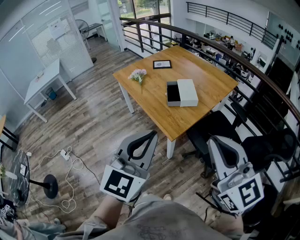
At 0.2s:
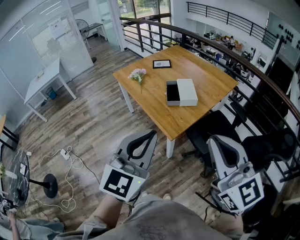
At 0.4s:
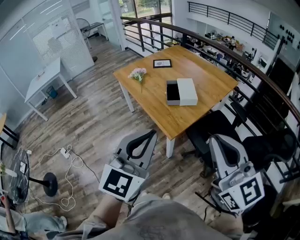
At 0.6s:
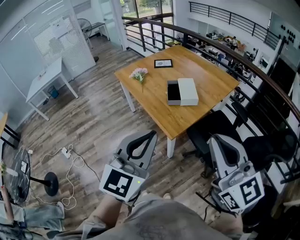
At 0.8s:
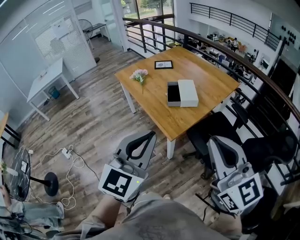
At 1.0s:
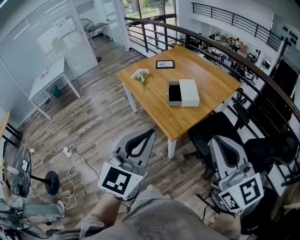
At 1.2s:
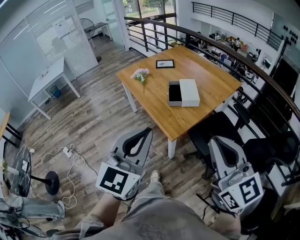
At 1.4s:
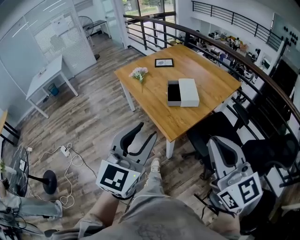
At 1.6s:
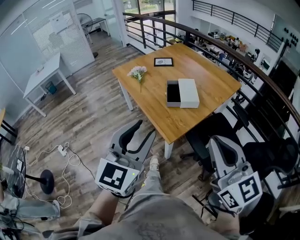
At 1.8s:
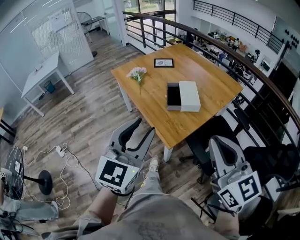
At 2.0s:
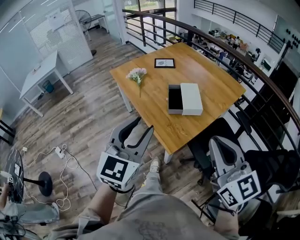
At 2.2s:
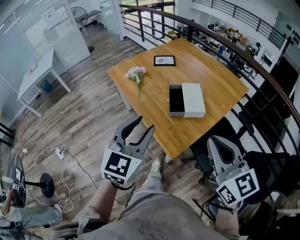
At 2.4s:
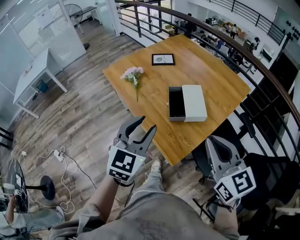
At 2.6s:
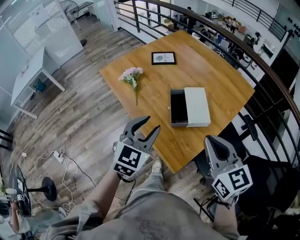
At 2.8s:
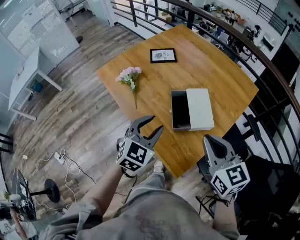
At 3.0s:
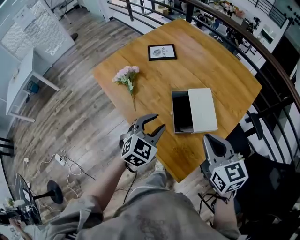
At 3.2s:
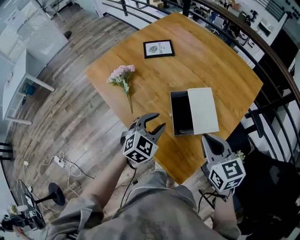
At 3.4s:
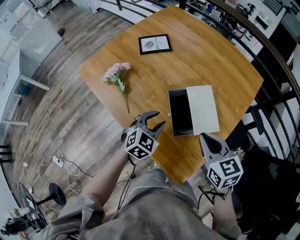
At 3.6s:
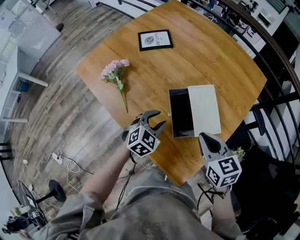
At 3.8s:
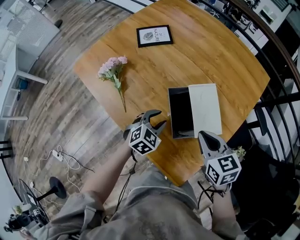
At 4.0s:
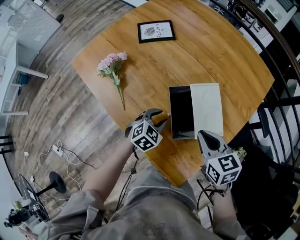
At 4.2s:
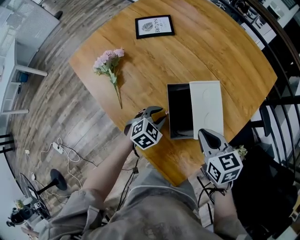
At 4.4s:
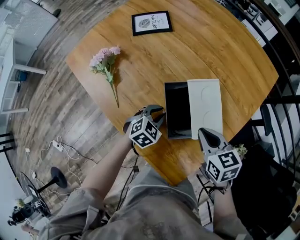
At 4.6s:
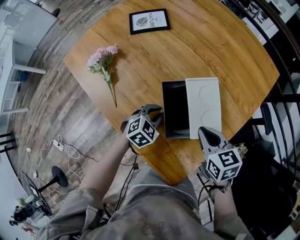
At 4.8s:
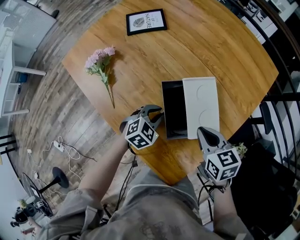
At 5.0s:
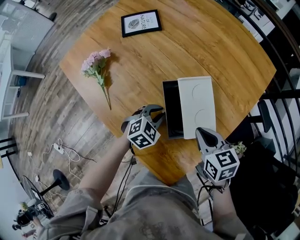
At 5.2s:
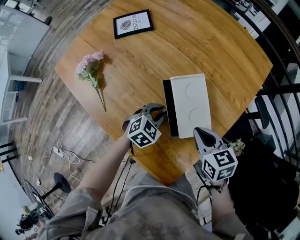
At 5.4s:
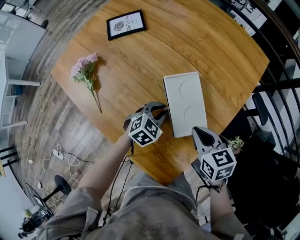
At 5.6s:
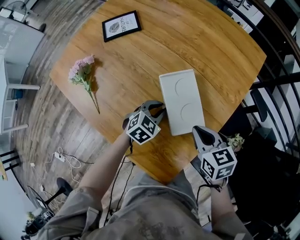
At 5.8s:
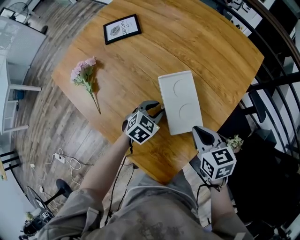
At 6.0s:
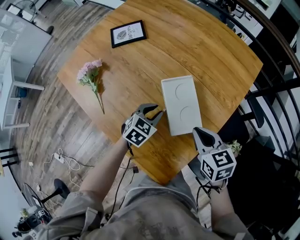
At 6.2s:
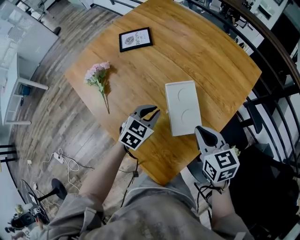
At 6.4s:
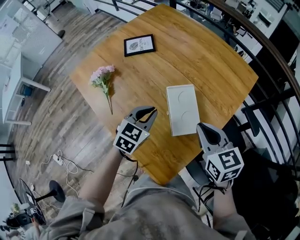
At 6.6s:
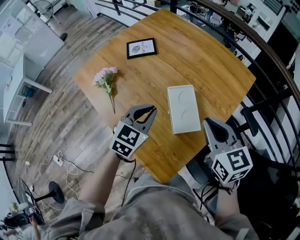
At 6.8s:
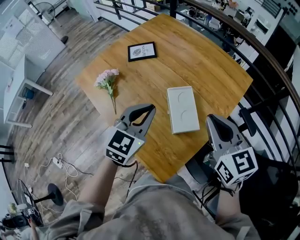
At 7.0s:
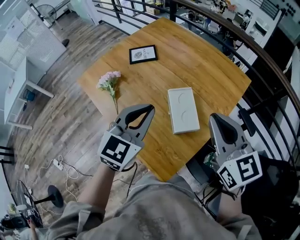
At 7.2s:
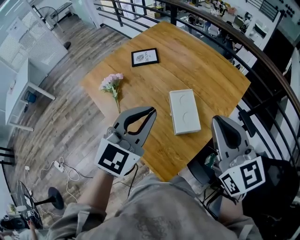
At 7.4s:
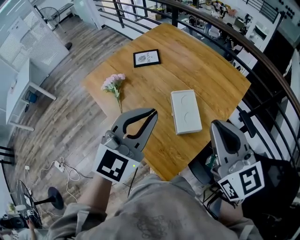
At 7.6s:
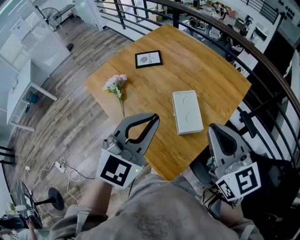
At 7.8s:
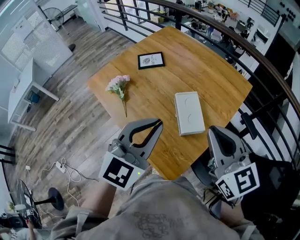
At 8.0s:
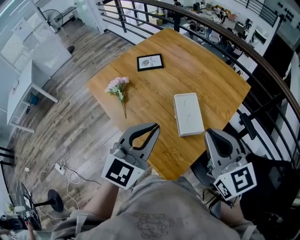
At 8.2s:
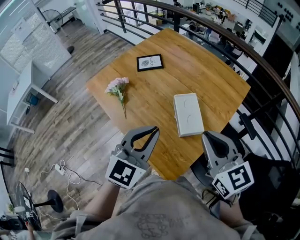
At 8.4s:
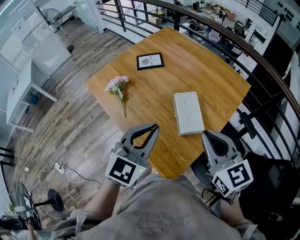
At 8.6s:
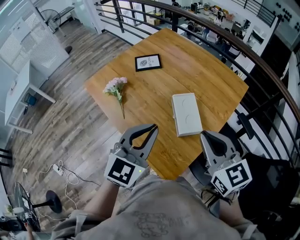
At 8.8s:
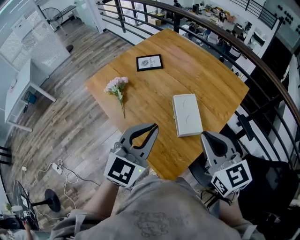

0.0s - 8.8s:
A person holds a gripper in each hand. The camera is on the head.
0.0s - 1.4s: The left gripper opens up.
1.4s - 3.0s: The two grippers go roughly 50 cm forward and downward. The right gripper changes its angle by approximately 30 degrees. The left gripper tips its fingers downward by roughly 30 degrees.
3.0s - 4.4s: The left gripper shifts roughly 20 cm downward, and swivels approximately 20 degrees, while the right gripper heads downward and forward, covering approximately 20 cm, and turns by some 20 degrees.
4.4s - 5.8s: The two grippers go roughly 10 cm to the right.
5.8s - 7.4s: Both grippers travel together upward, some 35 cm. The right gripper tips its fingers upward by approximately 40 degrees. Meanwhile the left gripper tips its fingers upward by approximately 40 degrees, and closes.
7.4s - 8.8s: The left gripper shifts by roughly 5 cm, while the right gripper travels downward by roughly 5 cm.

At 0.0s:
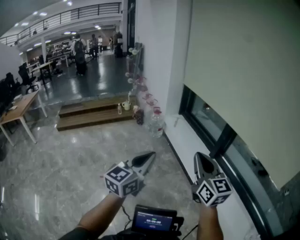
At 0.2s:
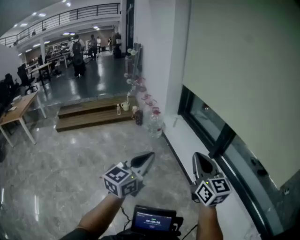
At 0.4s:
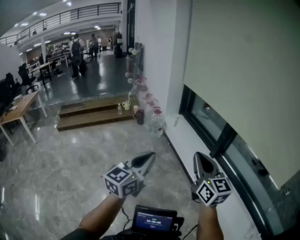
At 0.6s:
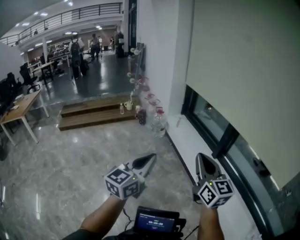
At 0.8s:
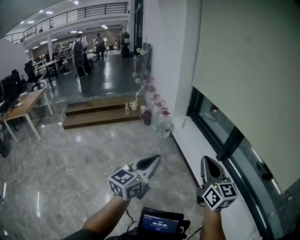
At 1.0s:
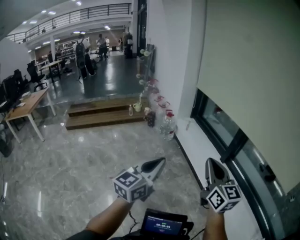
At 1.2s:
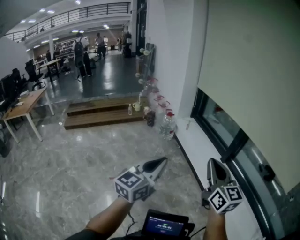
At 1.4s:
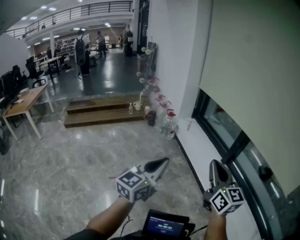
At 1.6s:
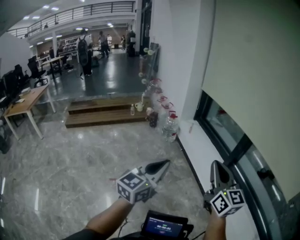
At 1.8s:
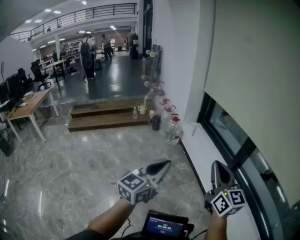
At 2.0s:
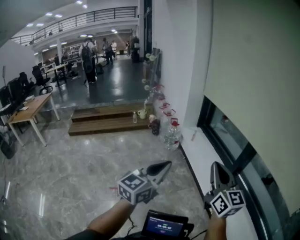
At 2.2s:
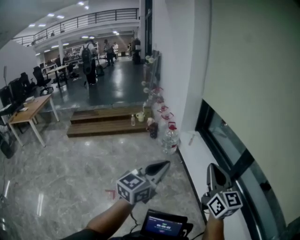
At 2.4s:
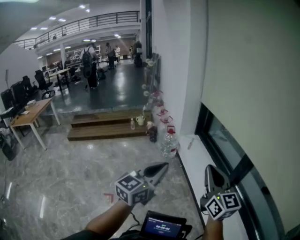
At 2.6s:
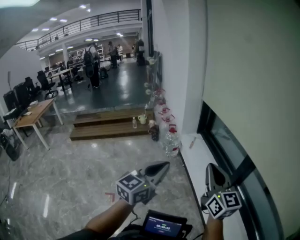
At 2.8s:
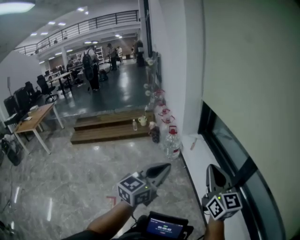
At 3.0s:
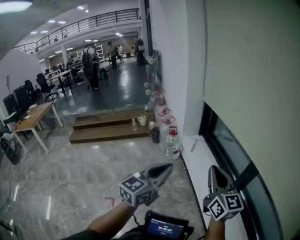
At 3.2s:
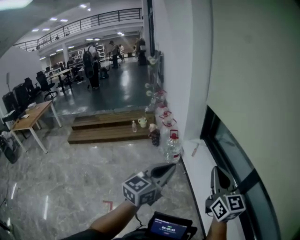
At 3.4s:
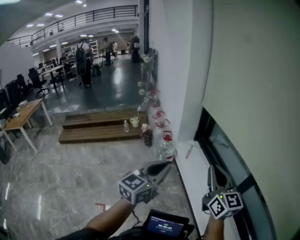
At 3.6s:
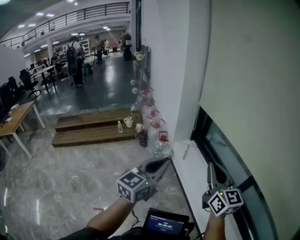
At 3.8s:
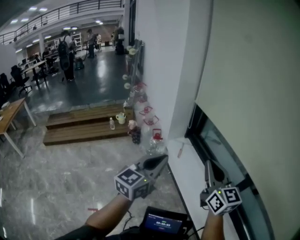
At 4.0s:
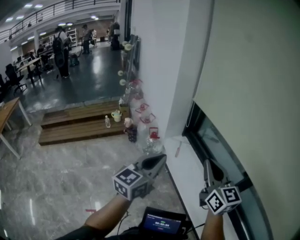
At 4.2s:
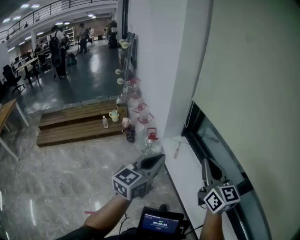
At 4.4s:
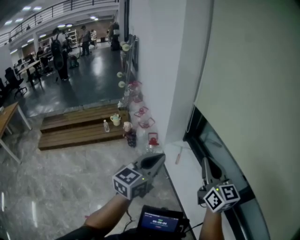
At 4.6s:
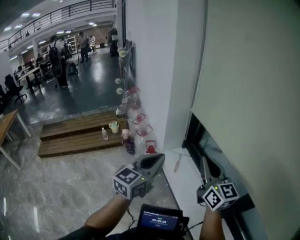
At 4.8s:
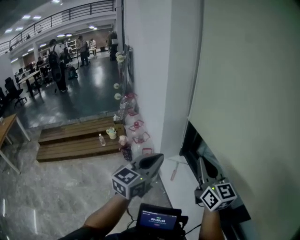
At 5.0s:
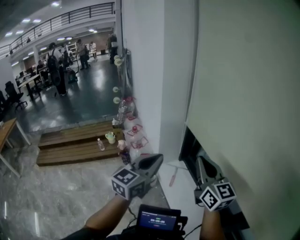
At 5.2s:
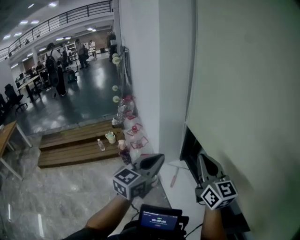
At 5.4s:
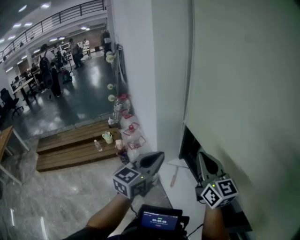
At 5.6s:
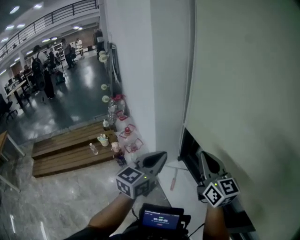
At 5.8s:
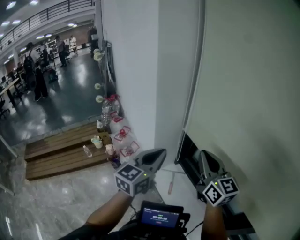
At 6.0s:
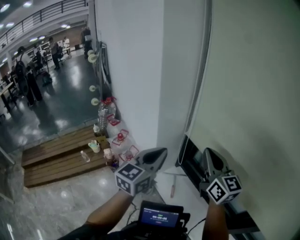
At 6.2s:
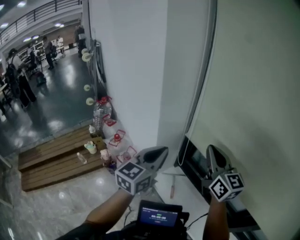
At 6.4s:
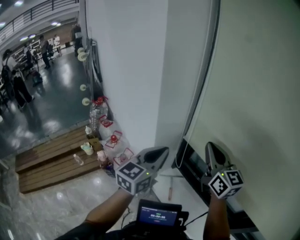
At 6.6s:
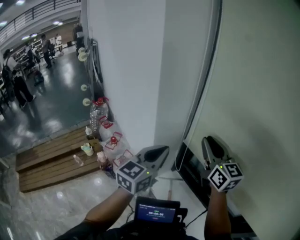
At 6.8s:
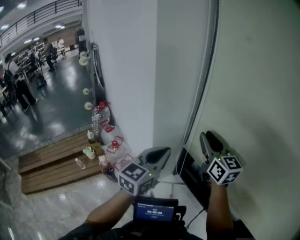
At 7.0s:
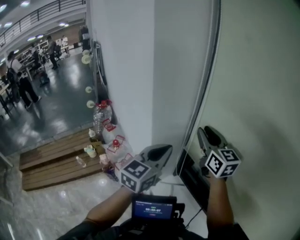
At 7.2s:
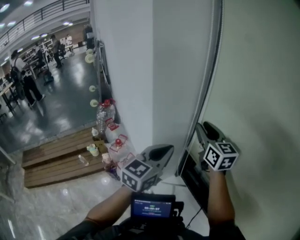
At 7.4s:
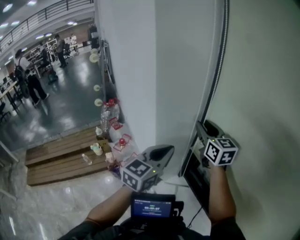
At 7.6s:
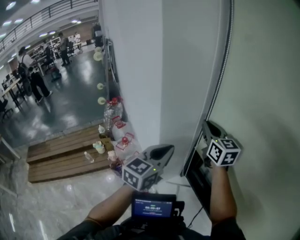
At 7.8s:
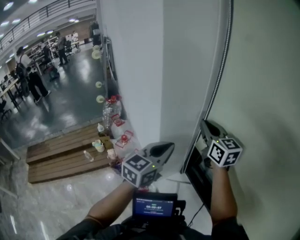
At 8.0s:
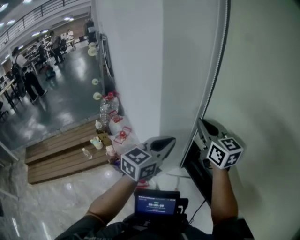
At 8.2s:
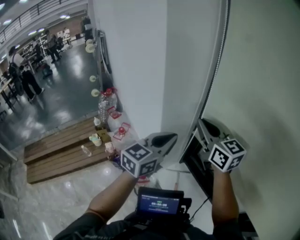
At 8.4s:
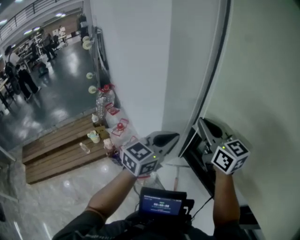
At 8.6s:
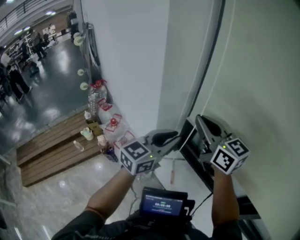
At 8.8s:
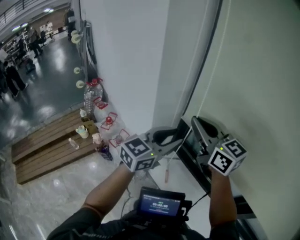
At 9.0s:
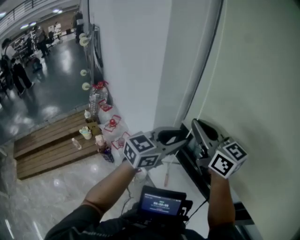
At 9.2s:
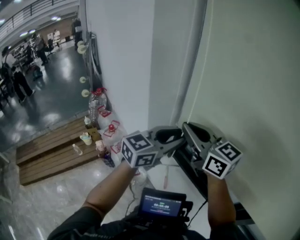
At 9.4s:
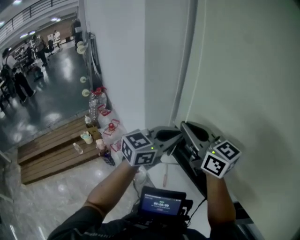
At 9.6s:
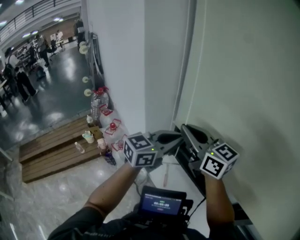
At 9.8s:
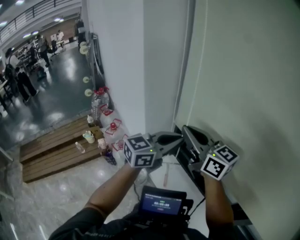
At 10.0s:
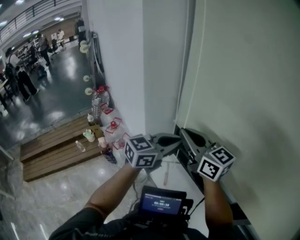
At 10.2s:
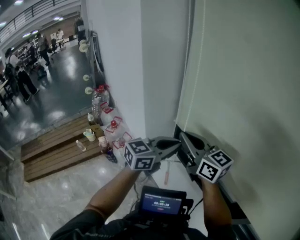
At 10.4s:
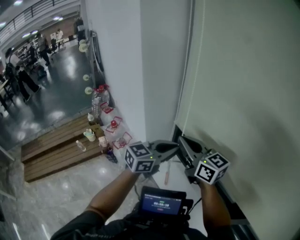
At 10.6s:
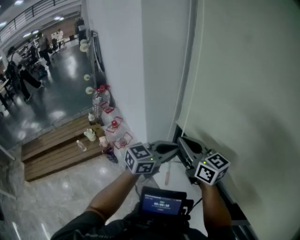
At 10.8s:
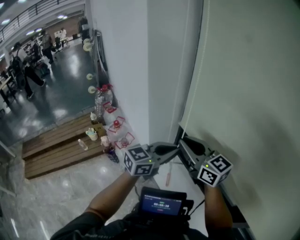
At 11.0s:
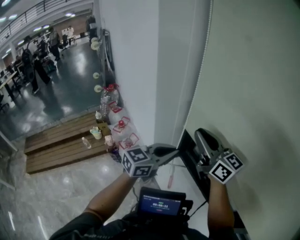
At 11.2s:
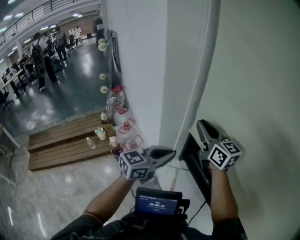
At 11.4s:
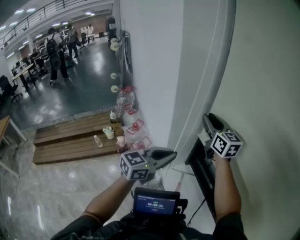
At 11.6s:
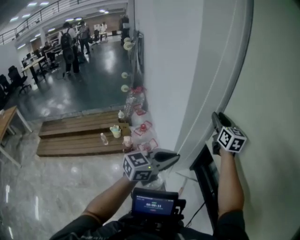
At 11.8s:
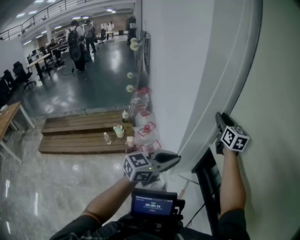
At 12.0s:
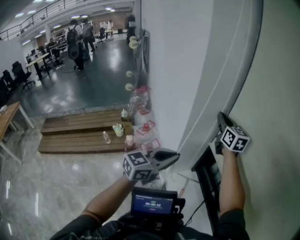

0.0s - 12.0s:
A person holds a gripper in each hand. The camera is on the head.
0.0s - 1.6s: The two grippers go about 5 cm to the left.
1.6s - 3.0s: The right gripper moves forward, about 25 cm, while the left gripper shifts about 30 cm forward and to the right.
3.0s - 4.4s: Both grippers travel together forward, about 30 cm.
4.4s - 6.0s: The two grippers go roughly 35 cm forward.
6.0s - 7.6s: The right gripper heads forward, covering roughly 20 cm, and opens, then closes once more. Meanwhile the left gripper is displaced forward by about 10 cm.
7.6s - 9.0s: The right gripper is displaced backward by approximately 20 cm. Meanwhile the left gripper moves backward and to the right, about 10 cm, rotates roughly 30 degrees, and opens up.
9.0s - 10.4s: The right gripper heads downward, covering about 10 cm. The left gripper heads downward and to the right, covering about 10 cm, and closes.
10.4s - 12.0s: The right gripper travels forward by roughly 25 cm, and opens, then closes again. The left gripper goes approximately 15 cm to the left.

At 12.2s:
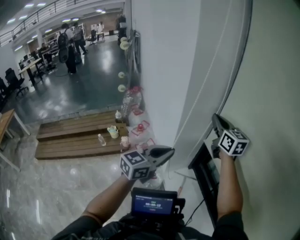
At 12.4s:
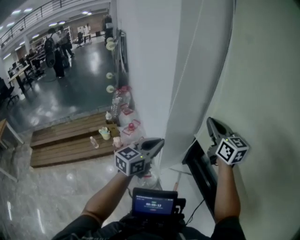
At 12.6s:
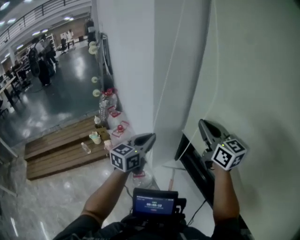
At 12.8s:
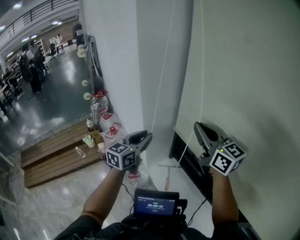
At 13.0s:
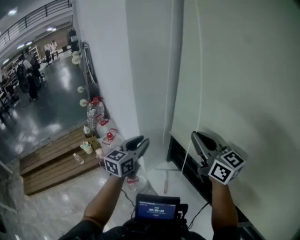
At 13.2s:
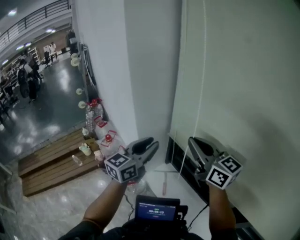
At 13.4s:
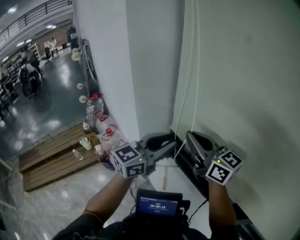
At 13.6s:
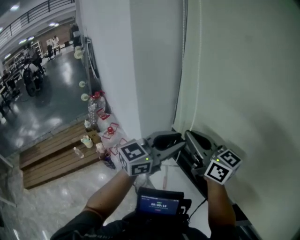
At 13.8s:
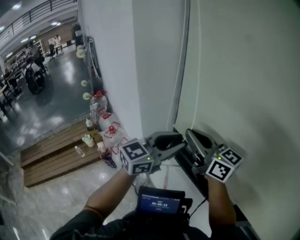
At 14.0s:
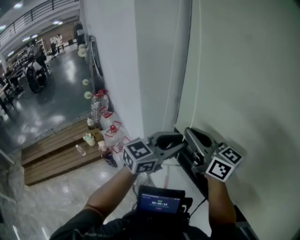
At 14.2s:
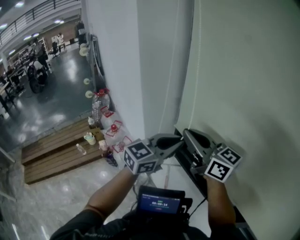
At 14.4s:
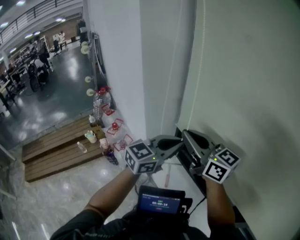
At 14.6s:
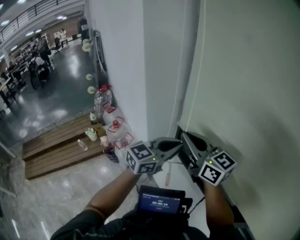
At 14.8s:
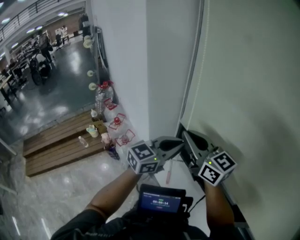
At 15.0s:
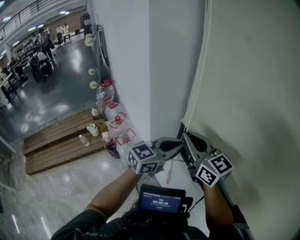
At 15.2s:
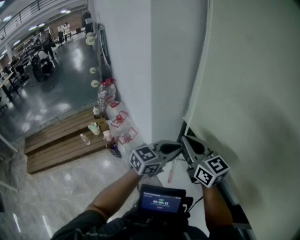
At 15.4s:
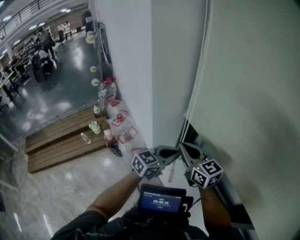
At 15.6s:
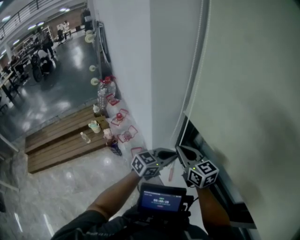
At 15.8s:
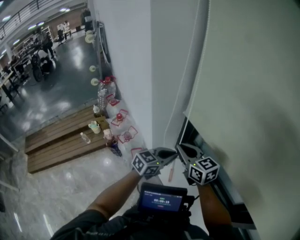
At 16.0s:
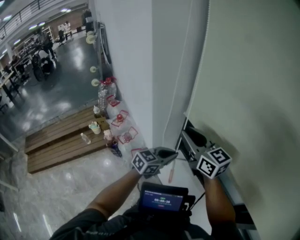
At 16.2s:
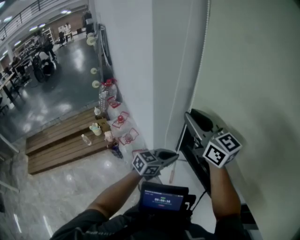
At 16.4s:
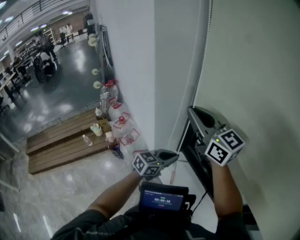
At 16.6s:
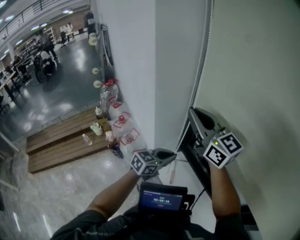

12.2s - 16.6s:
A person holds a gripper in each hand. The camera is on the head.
12.2s - 13.6s: The left gripper moves to the right and upward, approximately 20 cm, rotates some 30 degrees, and opens its fingers. Meanwhile the right gripper heads backward, covering some 20 cm.
13.6s - 15.2s: The two grippers go approximately 10 cm downward. The left gripper closes up.
15.2s - 16.6s: The right gripper shifts some 10 cm upward; the left gripper goes roughly 10 cm downward.
